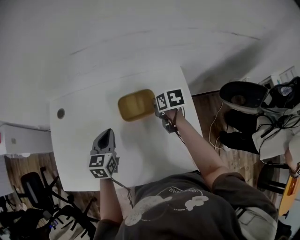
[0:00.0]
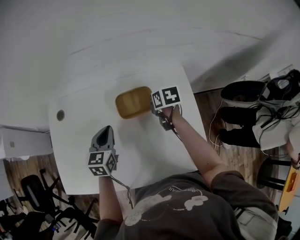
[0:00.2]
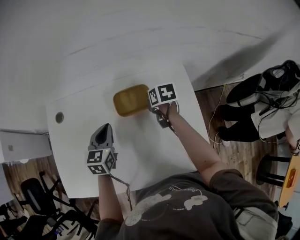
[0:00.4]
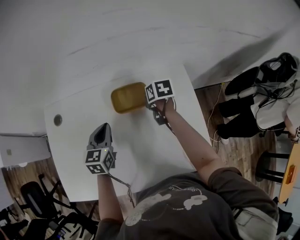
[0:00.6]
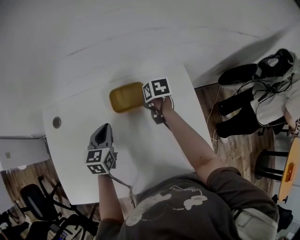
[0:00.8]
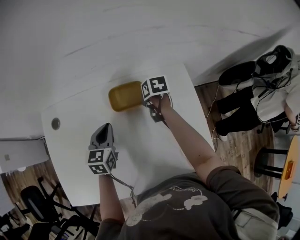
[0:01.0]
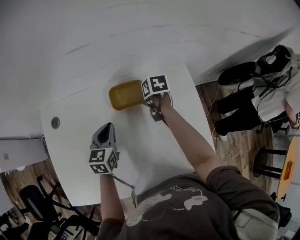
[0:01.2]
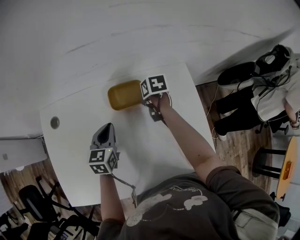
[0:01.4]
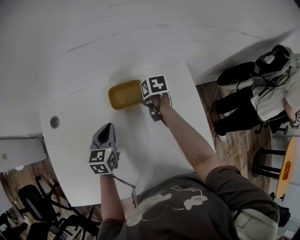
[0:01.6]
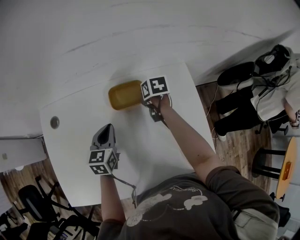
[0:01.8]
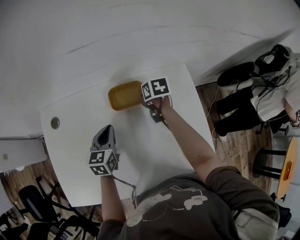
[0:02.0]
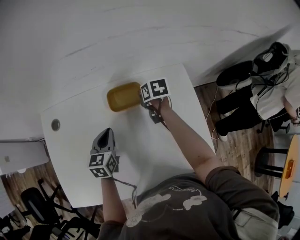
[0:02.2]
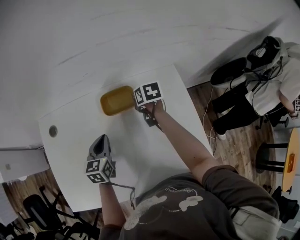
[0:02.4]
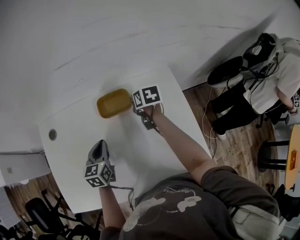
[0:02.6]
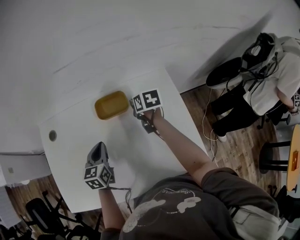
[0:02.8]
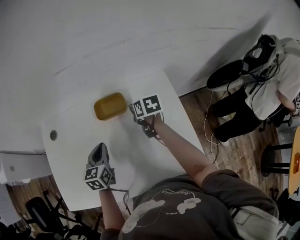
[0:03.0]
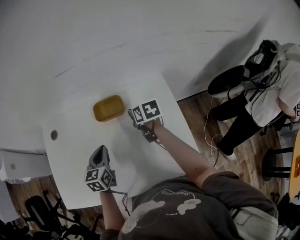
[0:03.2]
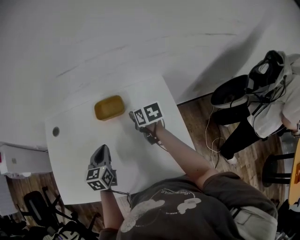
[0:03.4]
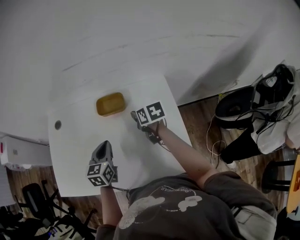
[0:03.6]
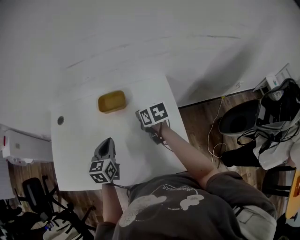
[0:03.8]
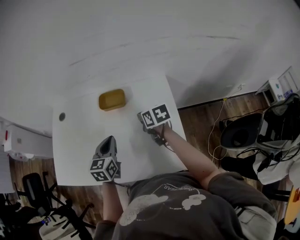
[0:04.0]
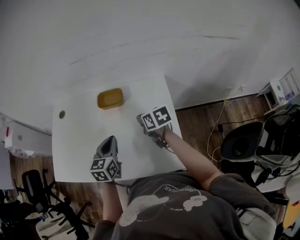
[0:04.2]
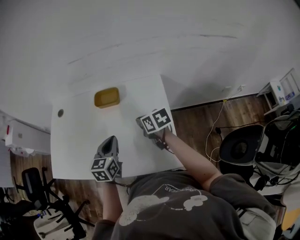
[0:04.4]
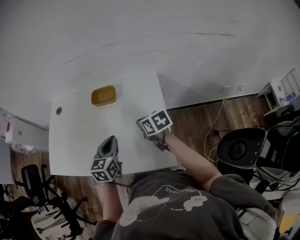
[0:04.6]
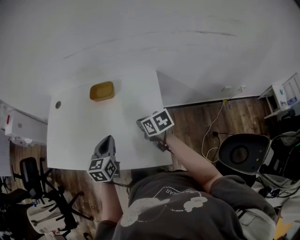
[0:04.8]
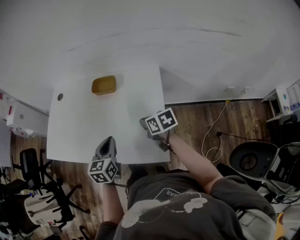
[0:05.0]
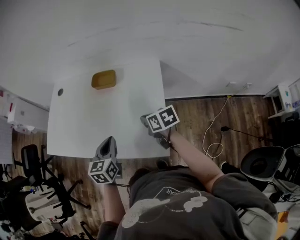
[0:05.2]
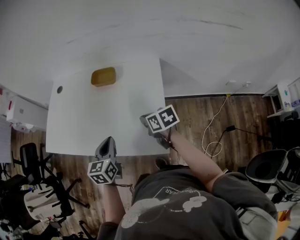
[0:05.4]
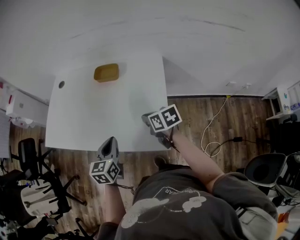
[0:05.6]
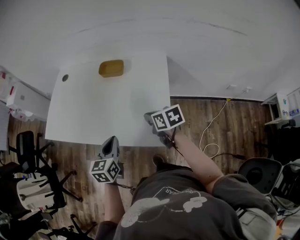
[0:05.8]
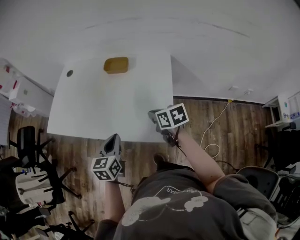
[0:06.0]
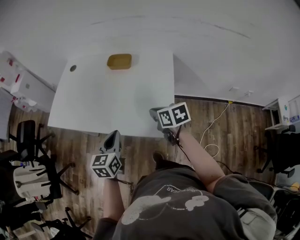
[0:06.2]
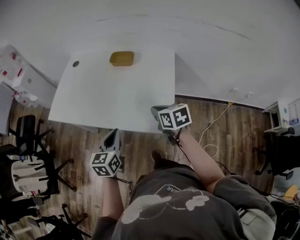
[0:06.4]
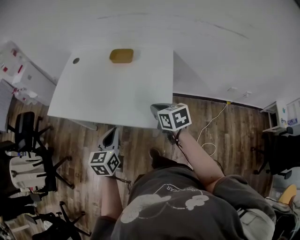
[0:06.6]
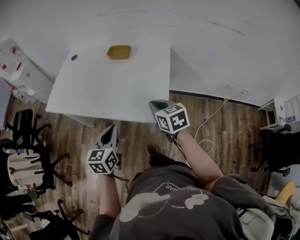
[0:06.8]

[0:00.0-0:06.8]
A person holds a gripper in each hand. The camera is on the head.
0:00.0 to 0:01.4: The left gripper is displaced forward and downward by about 10 cm, while the right gripper moves forward, to the left and downward, approximately 15 cm.
0:01.4 to 0:02.8: The left gripper shifts roughly 5 cm backward, while the right gripper heads upward, covering roughly 5 cm.
0:02.8 to 0:04.0: The left gripper moves backward, to the right and upward, some 15 cm, while the right gripper shifts about 15 cm backward, and rotates roughly 20 degrees.
0:04.0 to 0:05.4: The grippers both shift backward by about 20 cm.
0:05.4 to 0:06.8: The right gripper goes roughly 15 cm backward and upward, and turns by some 20 degrees. The left gripper travels backward by approximately 15 cm.

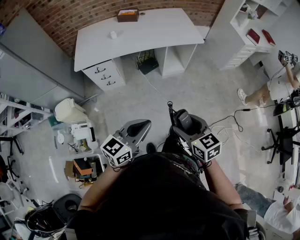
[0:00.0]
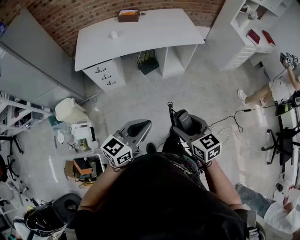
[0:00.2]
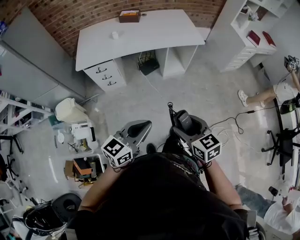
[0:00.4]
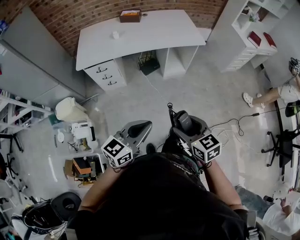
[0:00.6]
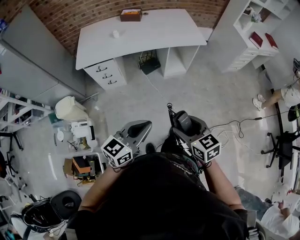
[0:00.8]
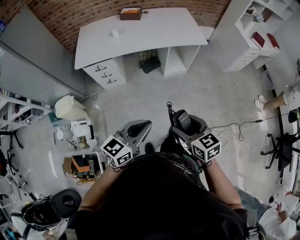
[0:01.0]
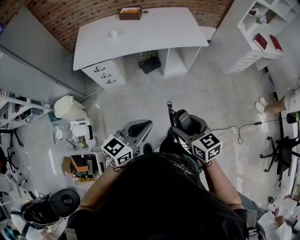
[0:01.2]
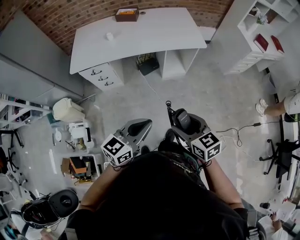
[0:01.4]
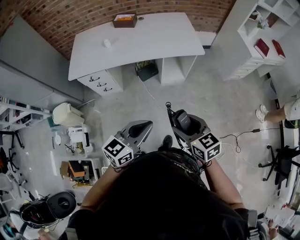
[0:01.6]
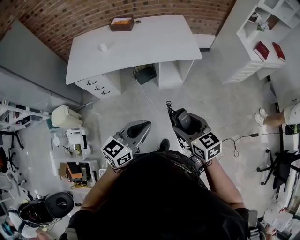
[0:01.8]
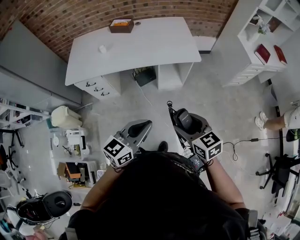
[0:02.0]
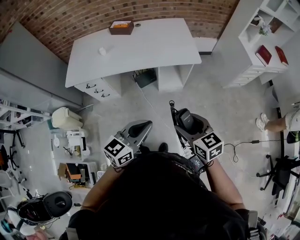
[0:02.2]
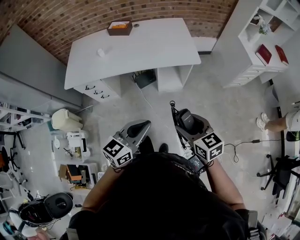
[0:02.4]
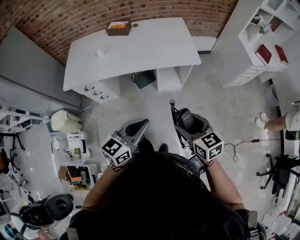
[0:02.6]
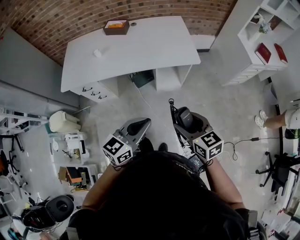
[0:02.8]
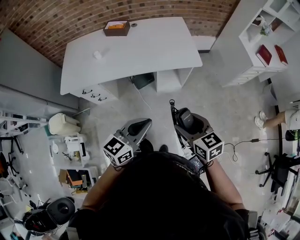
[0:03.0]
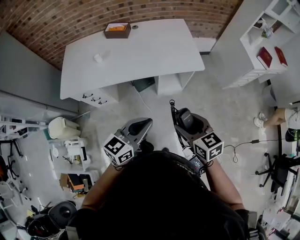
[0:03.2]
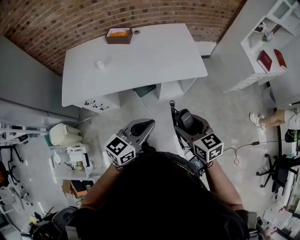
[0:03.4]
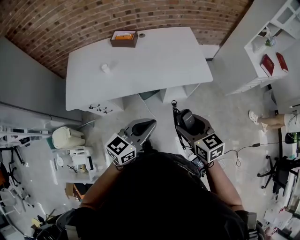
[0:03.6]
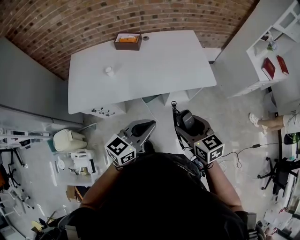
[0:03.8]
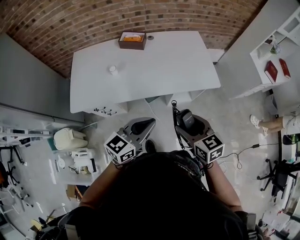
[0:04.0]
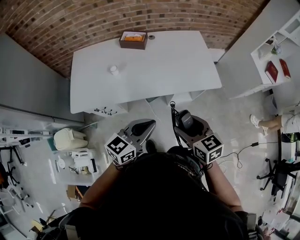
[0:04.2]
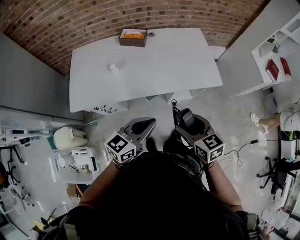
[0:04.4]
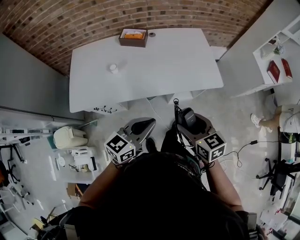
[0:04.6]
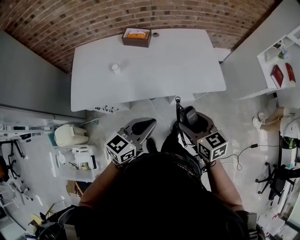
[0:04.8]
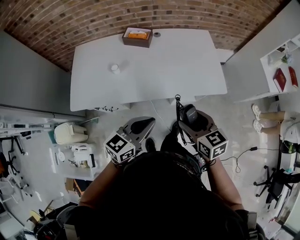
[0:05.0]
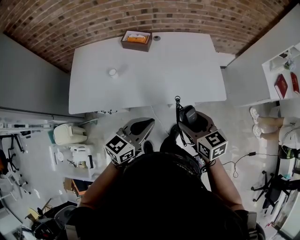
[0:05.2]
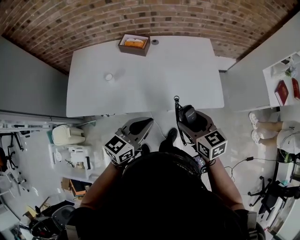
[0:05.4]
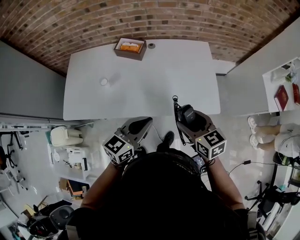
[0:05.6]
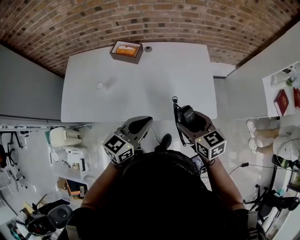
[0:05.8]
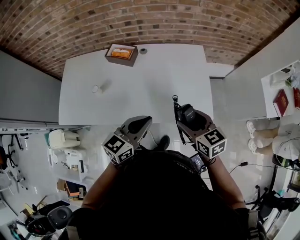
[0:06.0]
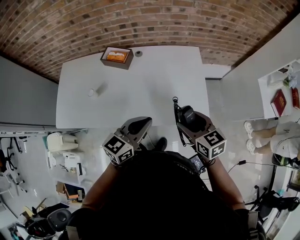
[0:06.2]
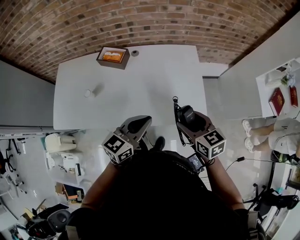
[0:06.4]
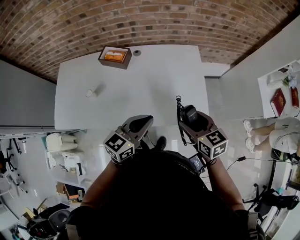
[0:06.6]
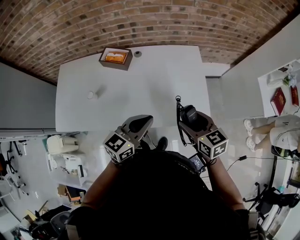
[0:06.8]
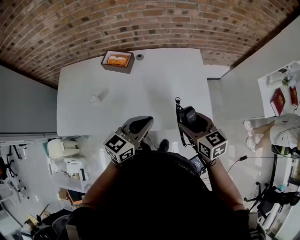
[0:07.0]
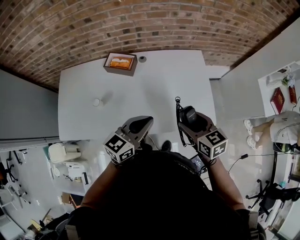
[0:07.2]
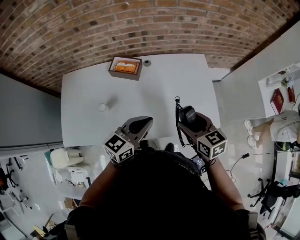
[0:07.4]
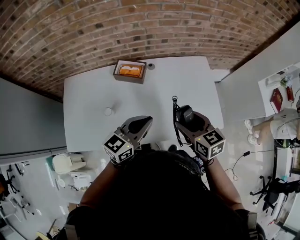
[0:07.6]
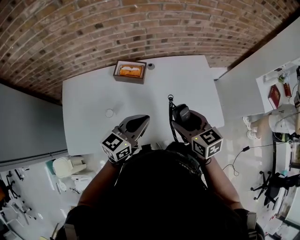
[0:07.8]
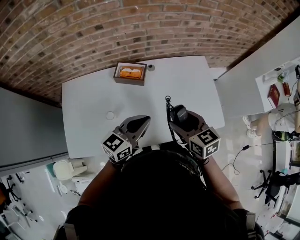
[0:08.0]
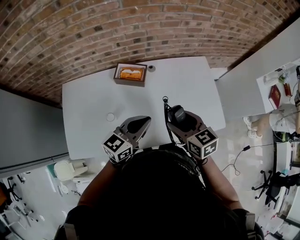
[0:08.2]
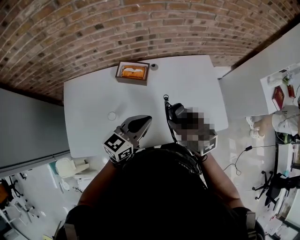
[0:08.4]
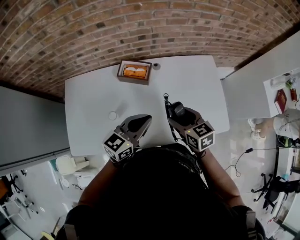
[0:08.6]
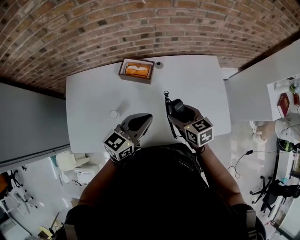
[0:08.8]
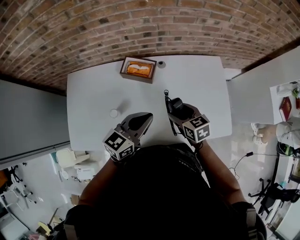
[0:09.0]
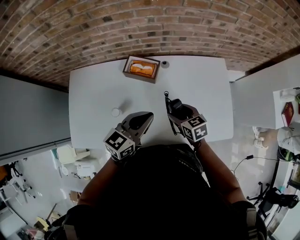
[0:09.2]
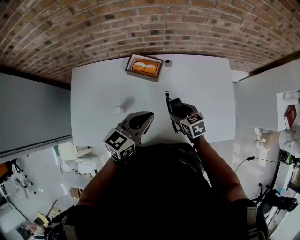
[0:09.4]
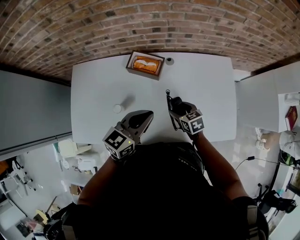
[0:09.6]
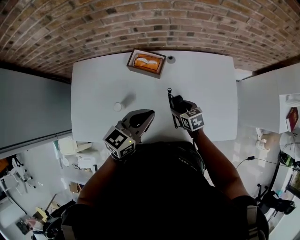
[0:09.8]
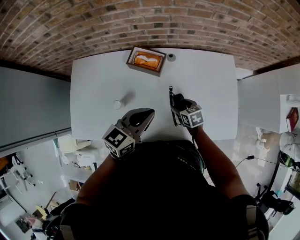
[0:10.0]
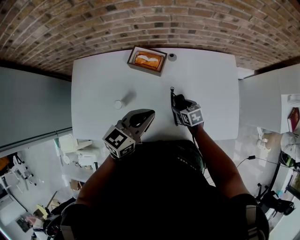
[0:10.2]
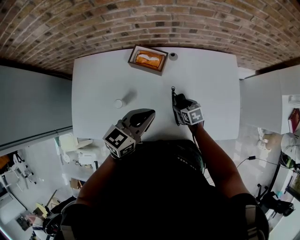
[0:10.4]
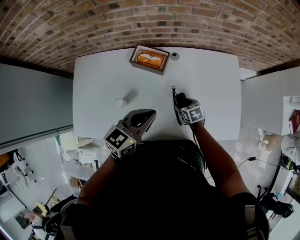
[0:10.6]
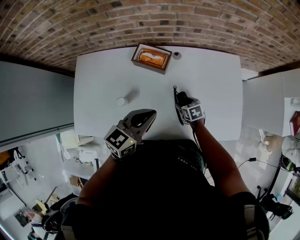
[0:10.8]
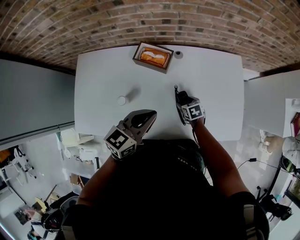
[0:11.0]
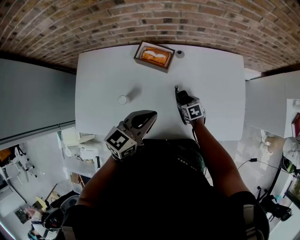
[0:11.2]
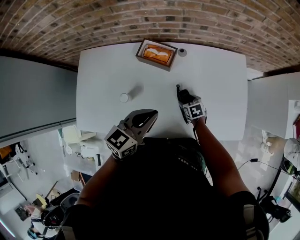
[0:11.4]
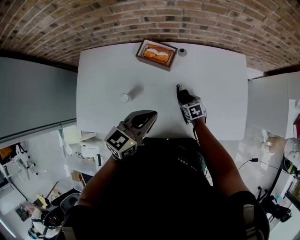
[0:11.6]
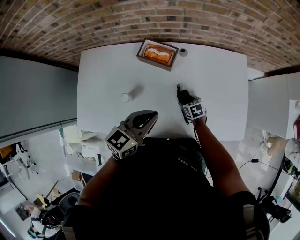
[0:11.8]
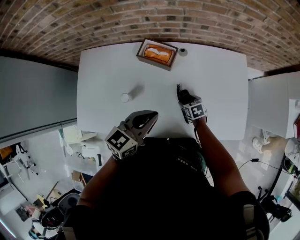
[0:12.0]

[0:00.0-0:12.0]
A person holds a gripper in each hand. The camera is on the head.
0:00.0 to 0:01.6: Both grippers travel together forward and to the right, roughly 20 cm.
0:01.6 to 0:03.0: Both grippers move forward, approximately 15 cm.
0:03.0 to 0:04.4: The two grippers go roughly 25 cm to the left and forward.
0:04.4 to 0:06.0: The two grippers go about 30 cm forward and to the right.
0:06.0 to 0:07.6: The grippers both shift to the left and forward by roughly 15 cm.
0:07.6 to 0:09.0: The right gripper goes about 15 cm downward, forward and to the left. The left gripper is displaced forward by approximately 5 cm.
0:09.0 to 0:10.4: The right gripper heads downward, covering roughly 20 cm.
0:10.4 to 0:12.0: The grippers stay close to where they were, moving slightly.

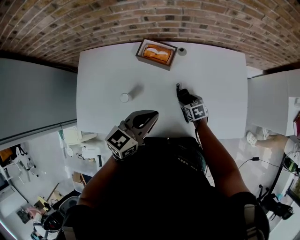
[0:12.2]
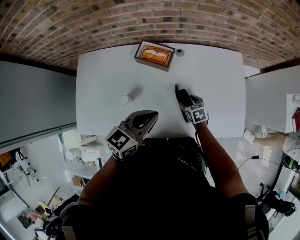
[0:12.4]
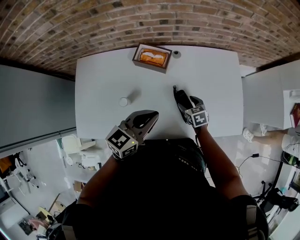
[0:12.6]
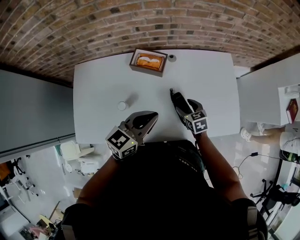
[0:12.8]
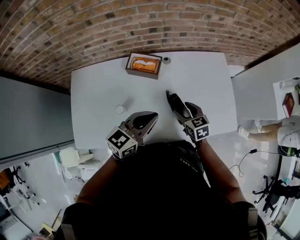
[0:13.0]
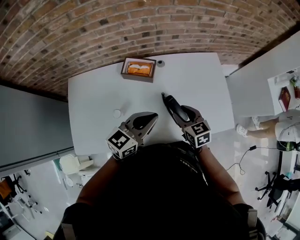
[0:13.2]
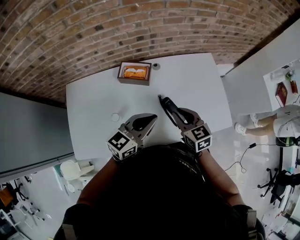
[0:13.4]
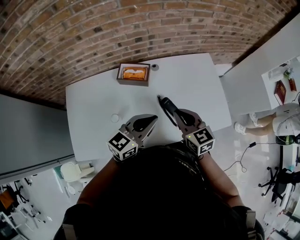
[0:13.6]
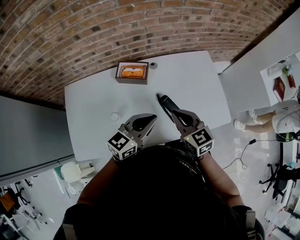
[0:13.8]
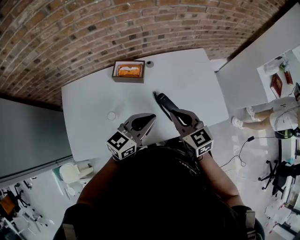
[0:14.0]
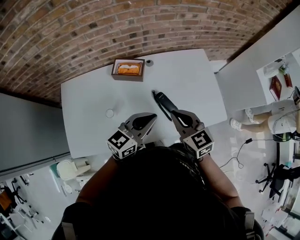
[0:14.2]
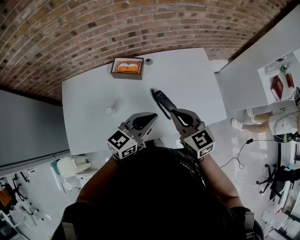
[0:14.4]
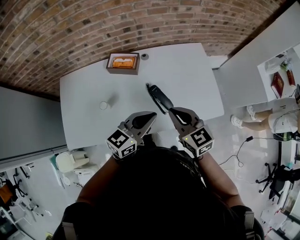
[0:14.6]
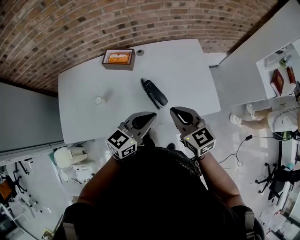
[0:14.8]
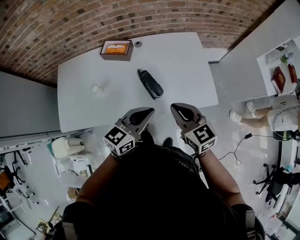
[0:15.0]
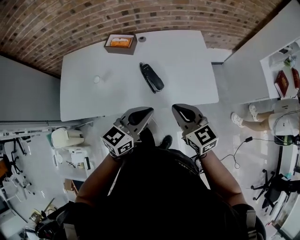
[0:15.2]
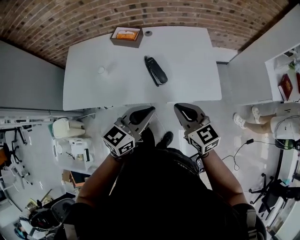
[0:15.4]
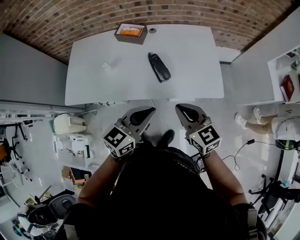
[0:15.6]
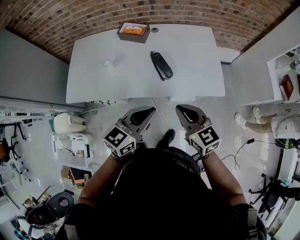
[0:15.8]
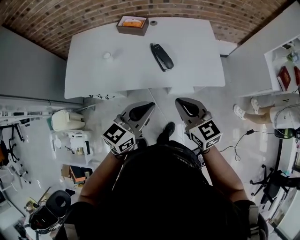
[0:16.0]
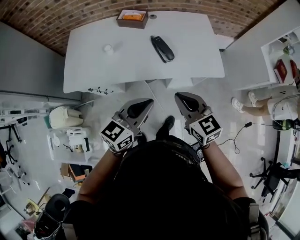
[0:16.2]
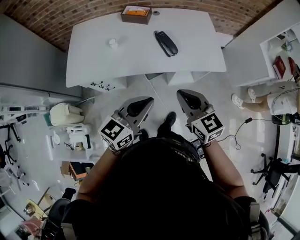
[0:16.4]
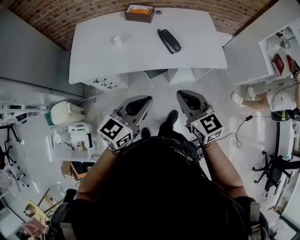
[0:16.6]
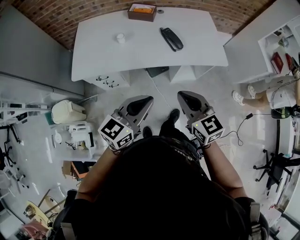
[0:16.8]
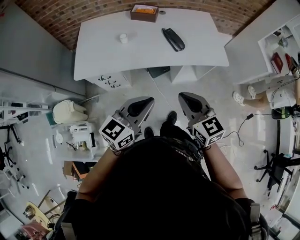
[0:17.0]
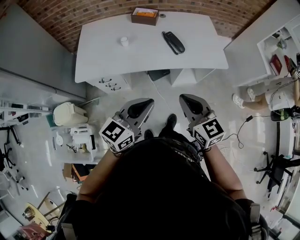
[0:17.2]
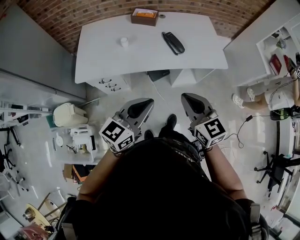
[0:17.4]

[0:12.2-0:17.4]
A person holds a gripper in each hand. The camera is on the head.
0:12.2 to 0:14.0: The left gripper changes place by some 5 cm, while the right gripper heads upward, covering some 30 cm, angles its fingers upward, by some 30 degrees, and closes up.
0:14.0 to 0:15.6: The grippers both shift backward and to the right by approximately 25 cm.
0:15.6 to 0:17.4: The grippers both shift backward and to the left by about 25 cm.
